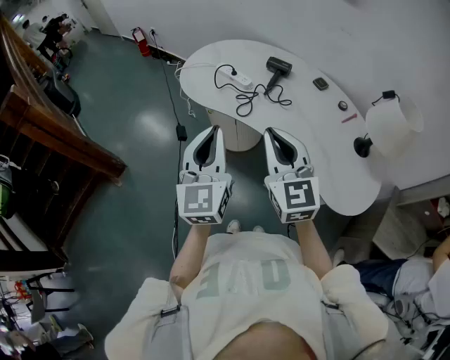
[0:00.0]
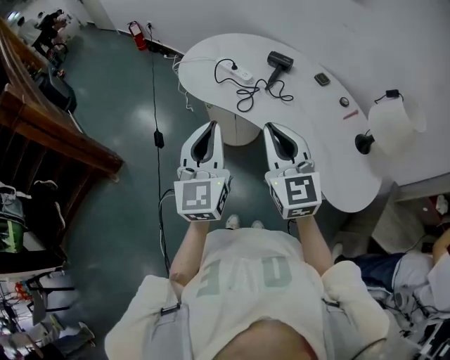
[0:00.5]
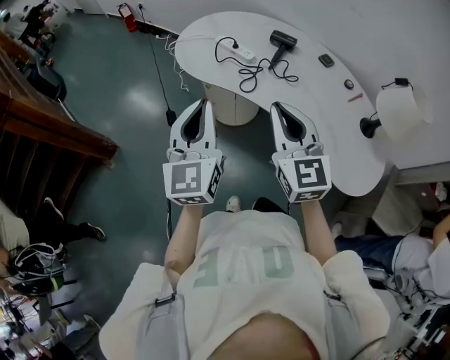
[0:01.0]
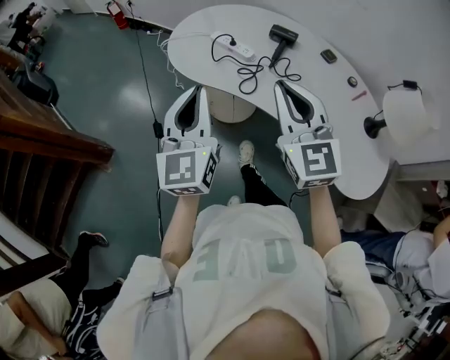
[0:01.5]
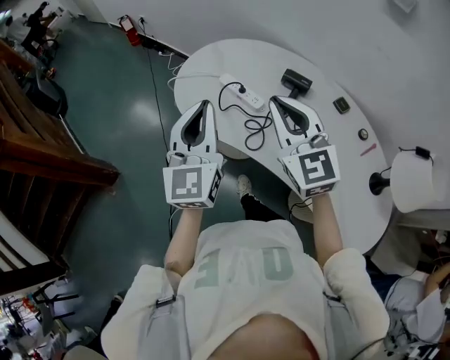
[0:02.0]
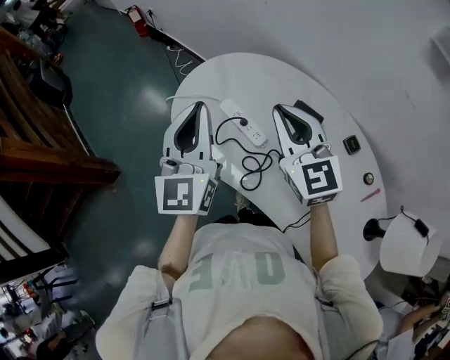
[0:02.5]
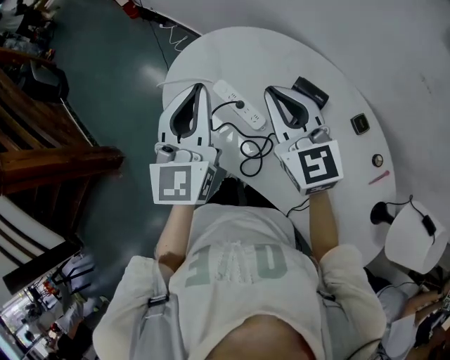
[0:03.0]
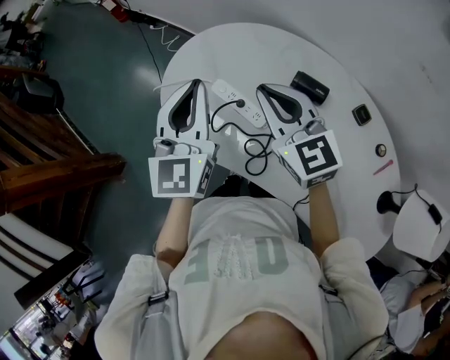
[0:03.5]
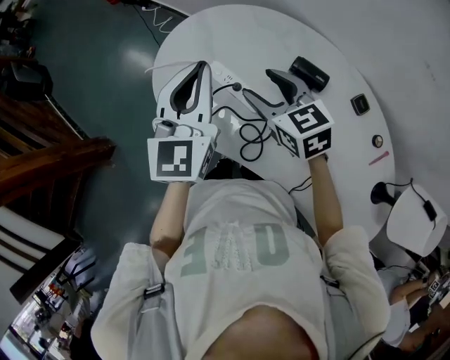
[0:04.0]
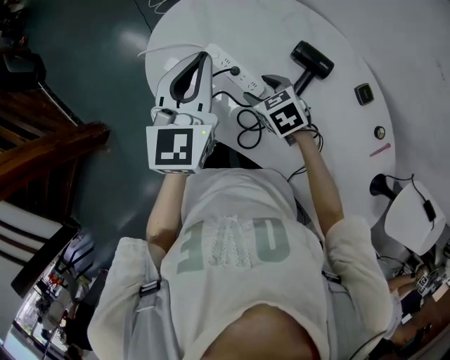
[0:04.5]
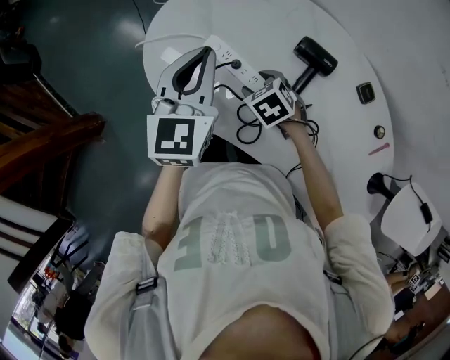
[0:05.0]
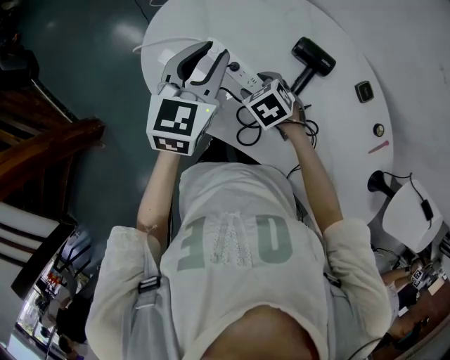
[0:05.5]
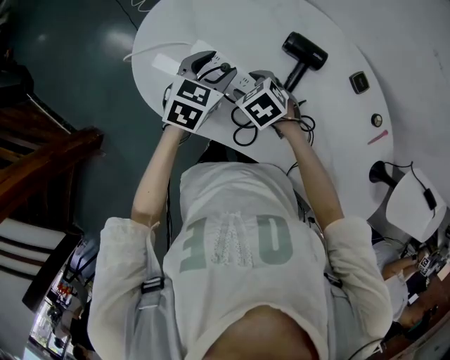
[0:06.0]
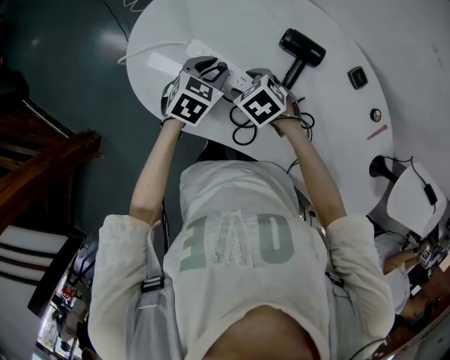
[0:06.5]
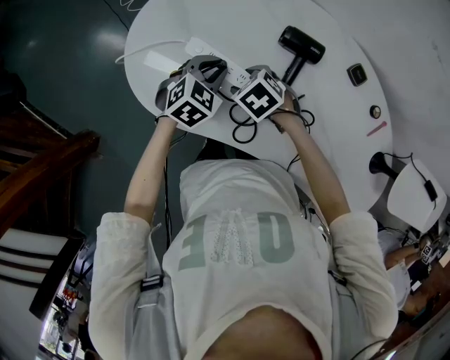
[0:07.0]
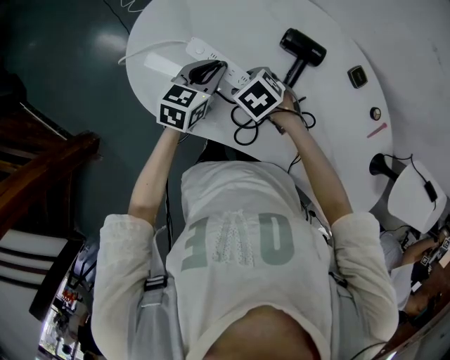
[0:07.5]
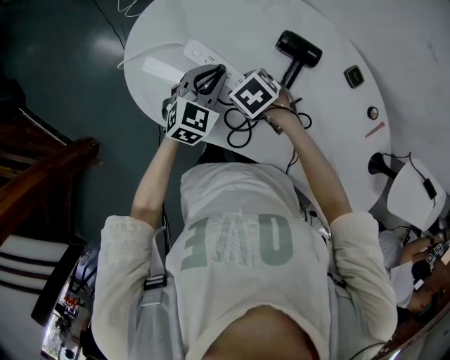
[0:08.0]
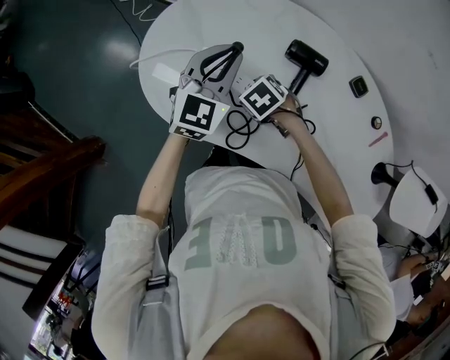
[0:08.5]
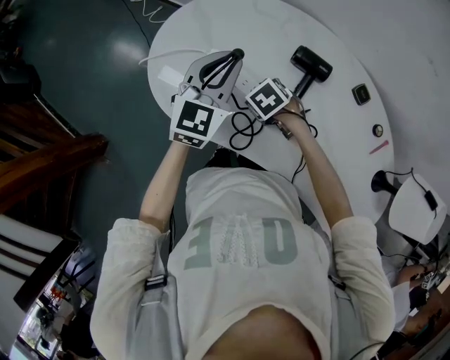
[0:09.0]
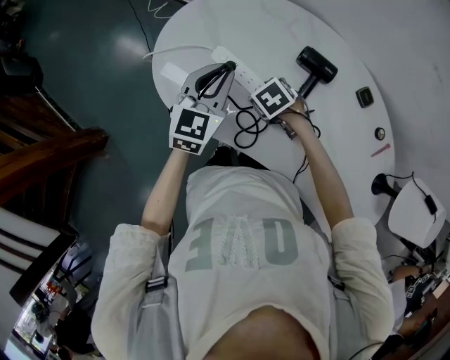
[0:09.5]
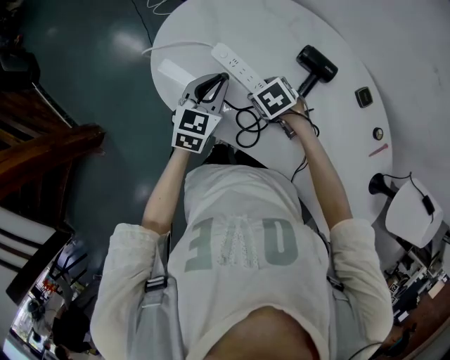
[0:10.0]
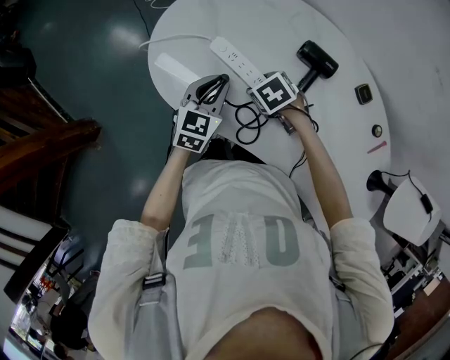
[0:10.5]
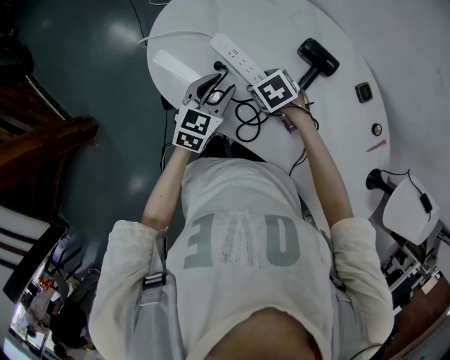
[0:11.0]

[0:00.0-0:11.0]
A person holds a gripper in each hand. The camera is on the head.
0:00.0 to 0:02.0: Both grippers travel together forward, about 25 cm.
0:02.0 to 0:03.5: Both grippers travel together forward, some 20 cm.
0:03.5 to 0:05.5: The right gripper is displaced downward by about 25 cm, angles its fingers downward, by about 50 degrees, and opens its fingers. Meanwhile the left gripper moves downward, roughly 10 cm, swivels roughly 30 degrees, and opens up.
0:05.5 to 0:07.5: The left gripper heads downward, covering about 15 cm, rotates about 20 degrees, and opens, then closes again.
0:07.5 to 0:09.0: The left gripper moves upward, about 15 cm, and rotates some 30 degrees.
0:09.0 to 0:11.0: The left gripper travels downward and backward by some 15 cm, changes its angle by approximately 20 degrees, and opens.

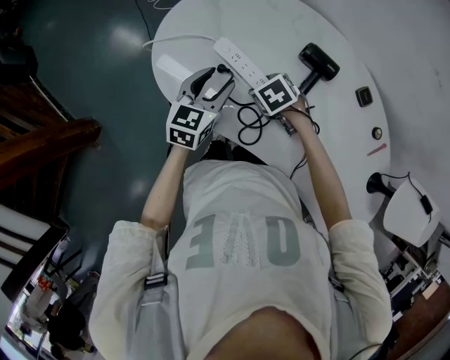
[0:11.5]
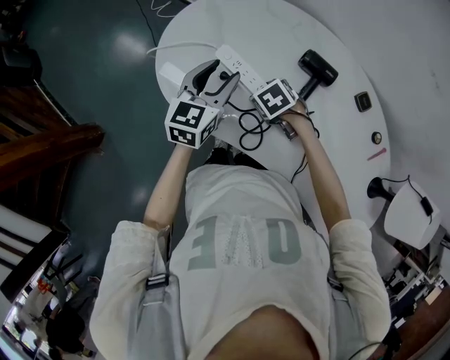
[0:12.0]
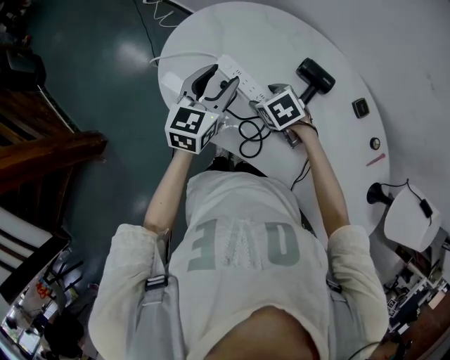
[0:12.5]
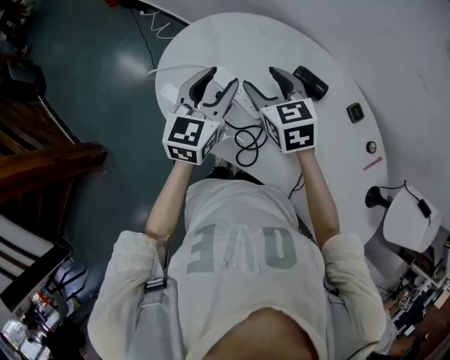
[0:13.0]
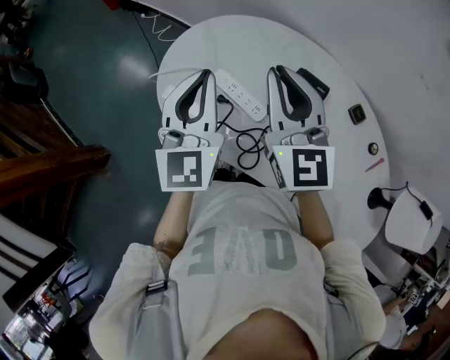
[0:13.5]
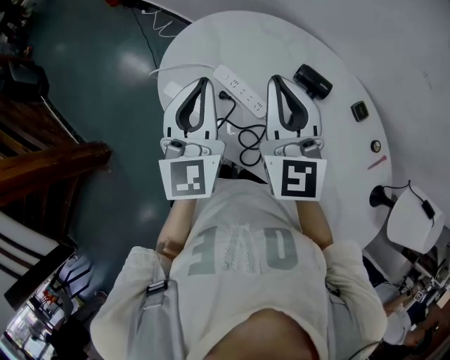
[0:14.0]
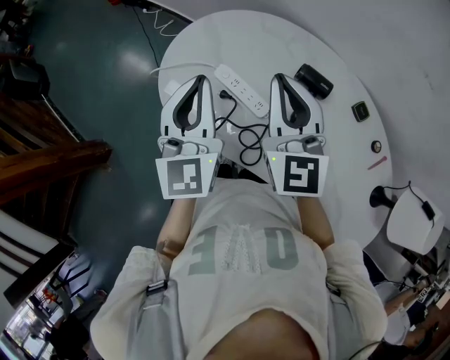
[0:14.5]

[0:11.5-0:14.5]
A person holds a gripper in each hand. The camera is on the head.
0:11.5 to 0:13.0: The right gripper heads upward, covering about 20 cm, and angles its fingers upward, by approximately 40 degrees, while the left gripper goes about 10 cm upward.
0:13.0 to 0:14.5: Both grippers travel together upward, about 10 cm. The left gripper rotates about 20 degrees, and closes its fingers. The right gripper angles its fingers upward, by about 30 degrees, and closes its fingers.

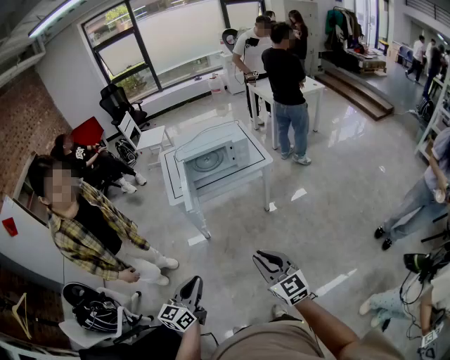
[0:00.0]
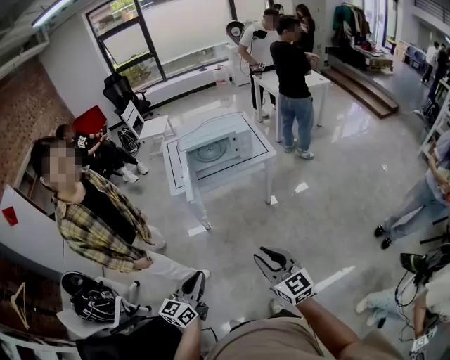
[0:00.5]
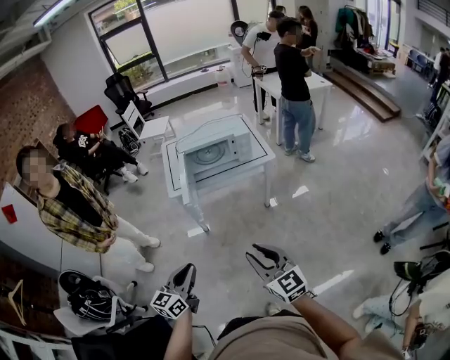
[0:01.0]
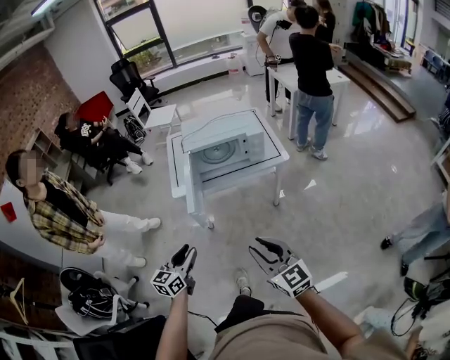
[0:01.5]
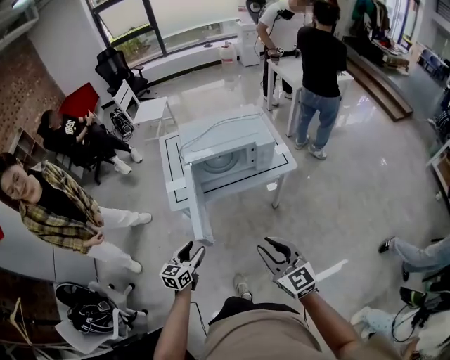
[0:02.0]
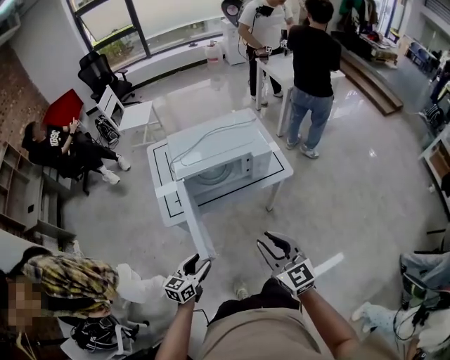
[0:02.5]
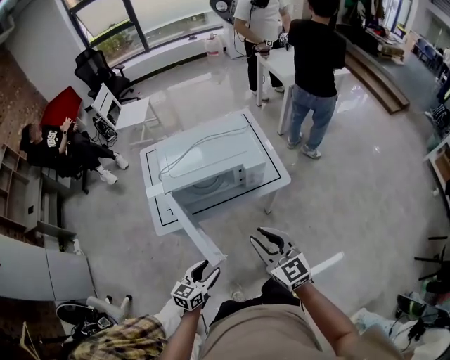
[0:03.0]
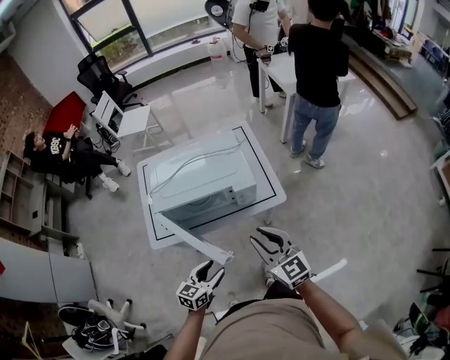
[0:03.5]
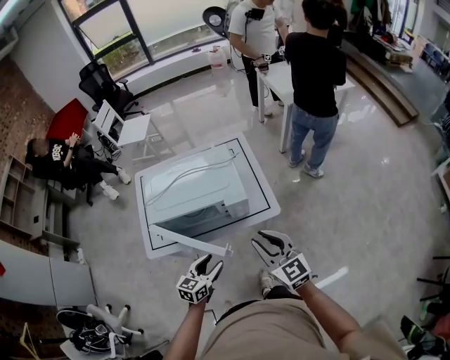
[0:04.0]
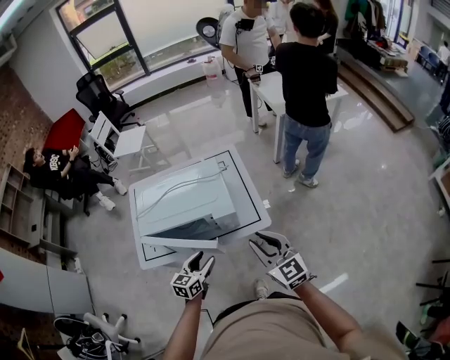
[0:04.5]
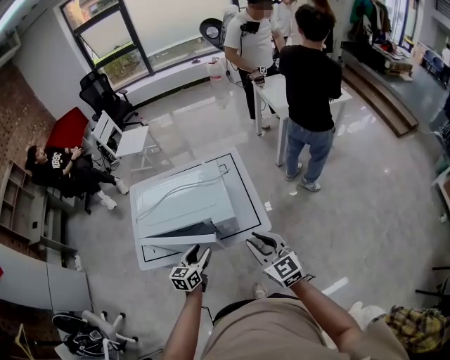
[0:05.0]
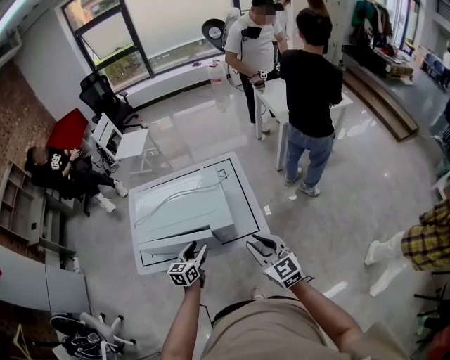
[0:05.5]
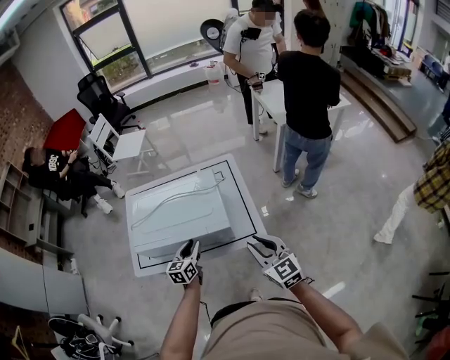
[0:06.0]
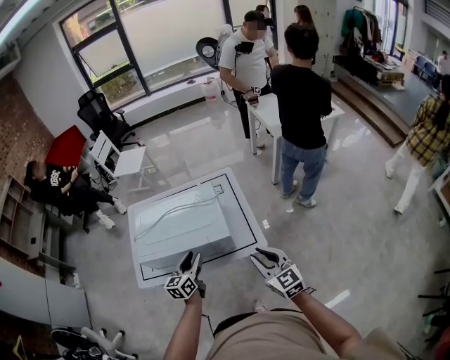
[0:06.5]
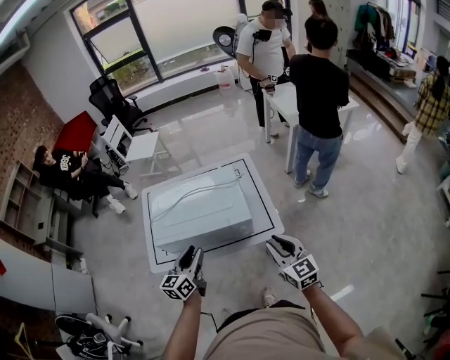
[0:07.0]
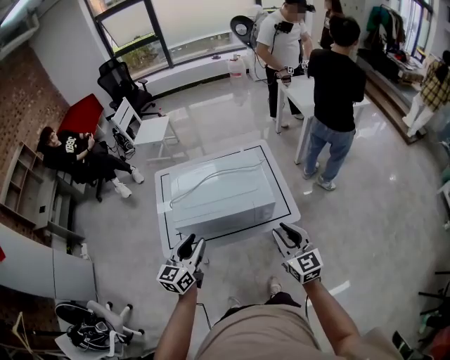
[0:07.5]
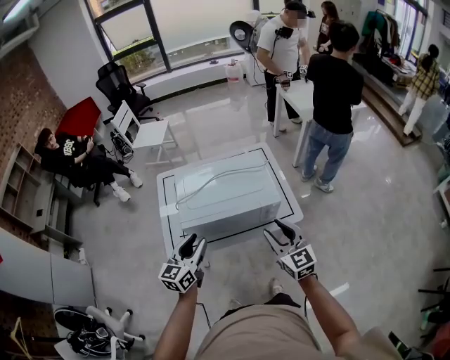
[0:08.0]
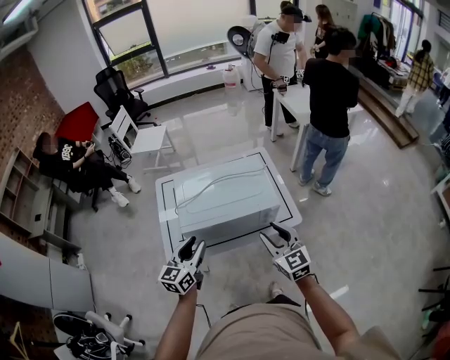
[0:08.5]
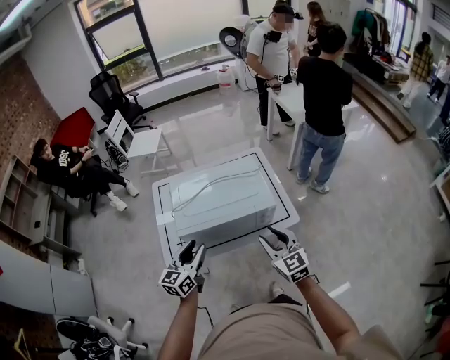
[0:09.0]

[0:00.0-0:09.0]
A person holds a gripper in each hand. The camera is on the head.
0:00.0 to 0:02.0: Both grippers travel together forward, approximately 30 cm. The left gripper opens up.
0:02.0 to 0:04.5: Both grippers travel together forward and to the right, roughly 40 cm.
0:04.5 to 0:07.0: The left gripper travels upward and to the left by some 15 cm.
0:07.0 to 0:09.0: Both grippers move to the left, about 15 cm.

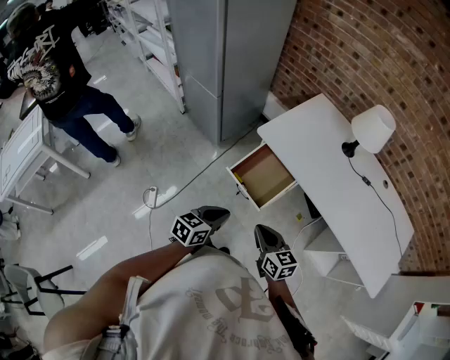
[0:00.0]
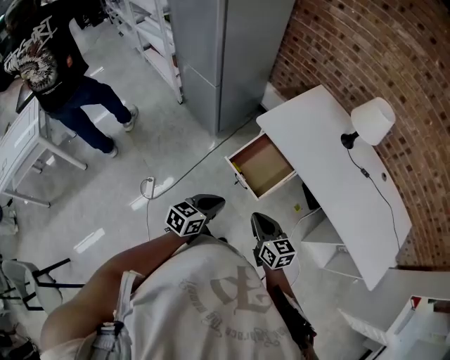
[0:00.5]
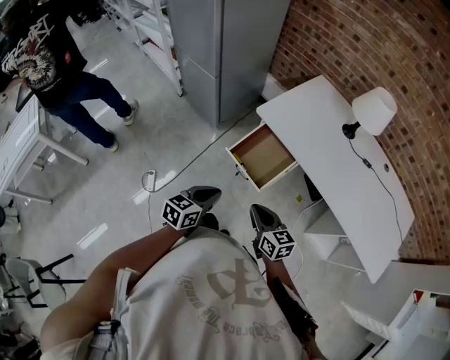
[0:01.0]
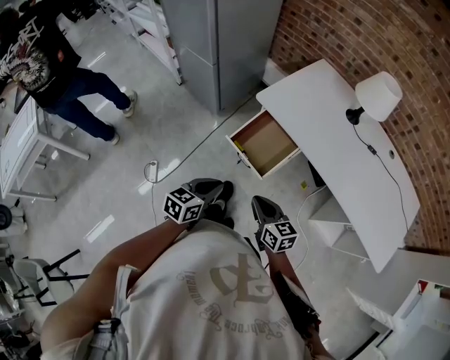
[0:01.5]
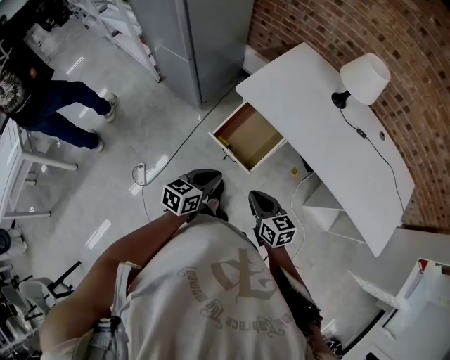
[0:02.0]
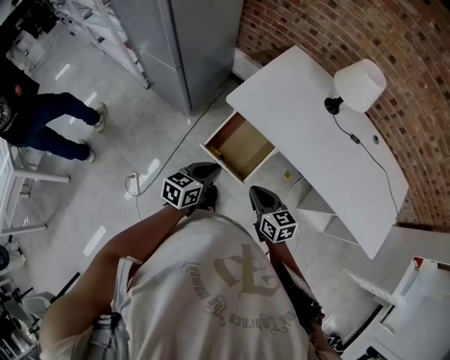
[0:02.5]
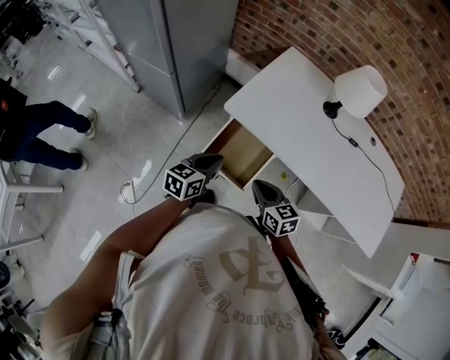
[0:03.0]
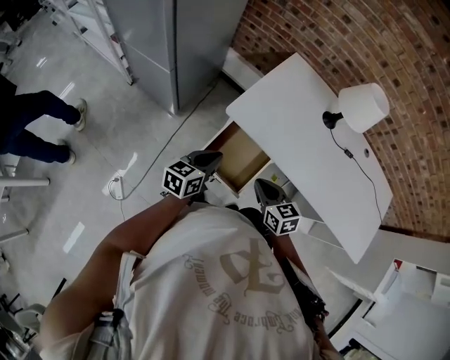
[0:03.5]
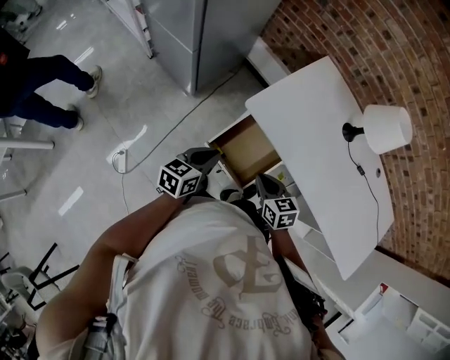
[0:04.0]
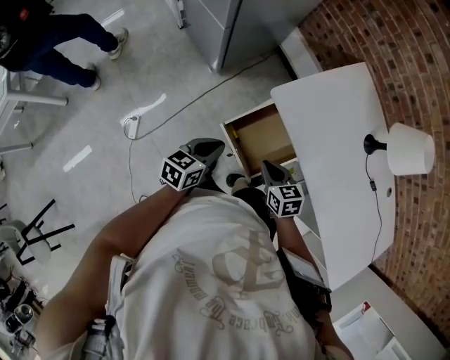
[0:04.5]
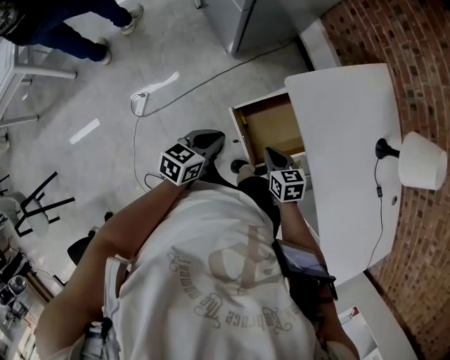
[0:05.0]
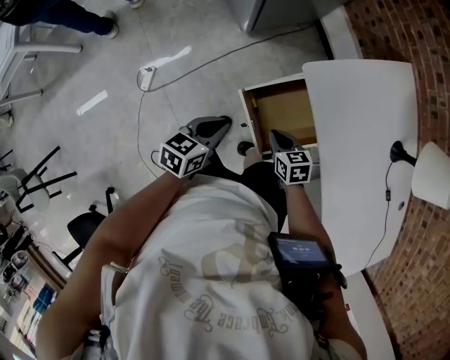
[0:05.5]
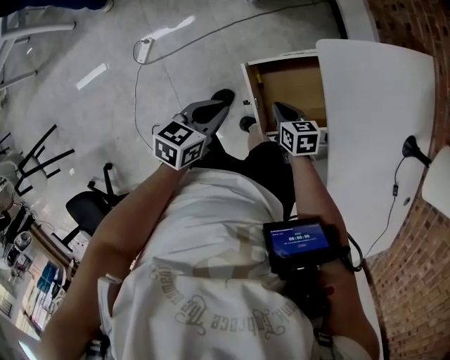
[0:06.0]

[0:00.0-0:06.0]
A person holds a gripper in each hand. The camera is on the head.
0:00.0 to 0:02.0: The left gripper moves forward, some 5 cm.
0:02.0 to 0:04.0: The left gripper goes some 20 cm forward and to the left. Meanwhile the right gripper travels forward by some 20 cm.
0:04.0 to 0:06.0: The right gripper travels downward by roughly 20 cm, and turns by some 30 degrees. Meanwhile the left gripper heads downward, covering about 10 cm, and turns by about 30 degrees.
